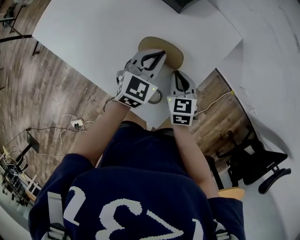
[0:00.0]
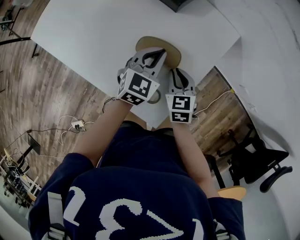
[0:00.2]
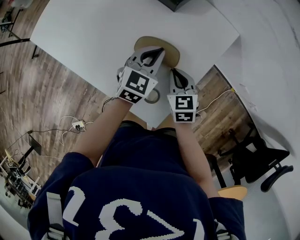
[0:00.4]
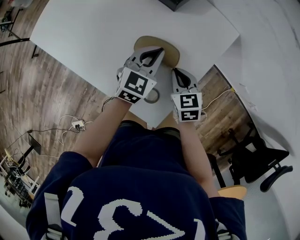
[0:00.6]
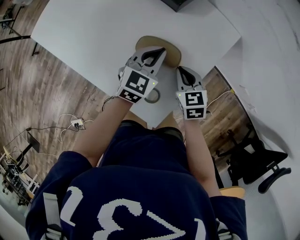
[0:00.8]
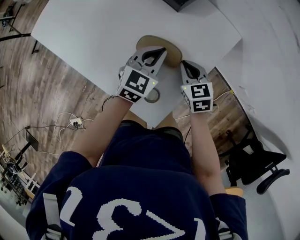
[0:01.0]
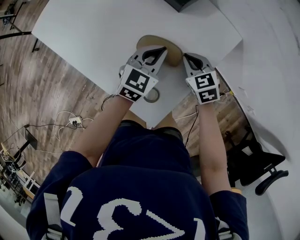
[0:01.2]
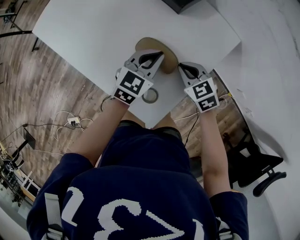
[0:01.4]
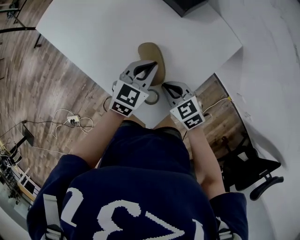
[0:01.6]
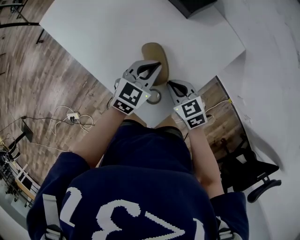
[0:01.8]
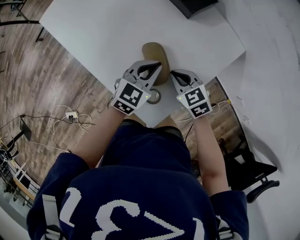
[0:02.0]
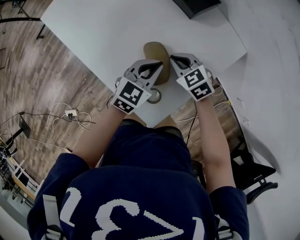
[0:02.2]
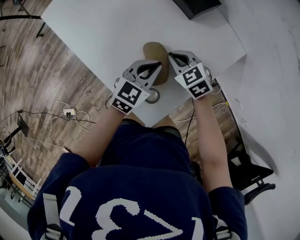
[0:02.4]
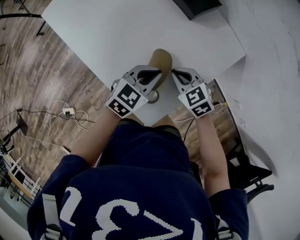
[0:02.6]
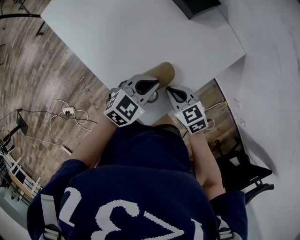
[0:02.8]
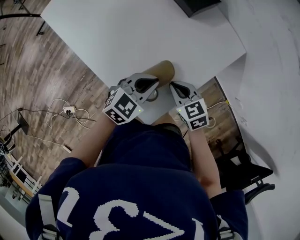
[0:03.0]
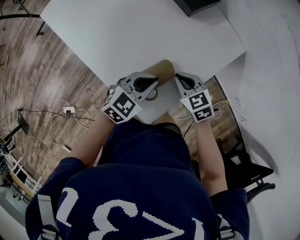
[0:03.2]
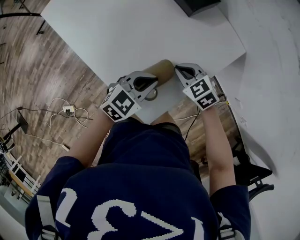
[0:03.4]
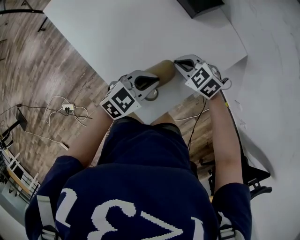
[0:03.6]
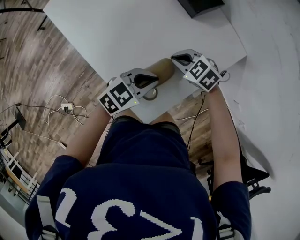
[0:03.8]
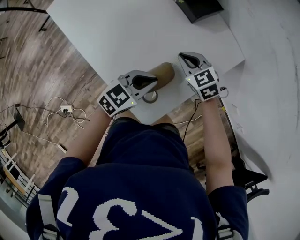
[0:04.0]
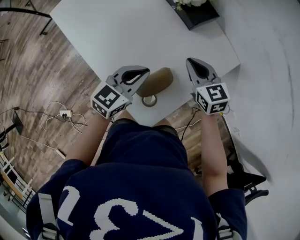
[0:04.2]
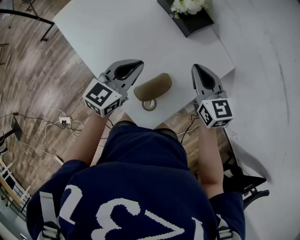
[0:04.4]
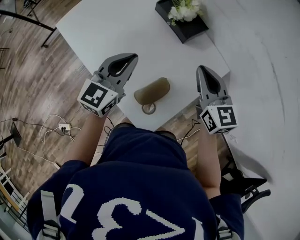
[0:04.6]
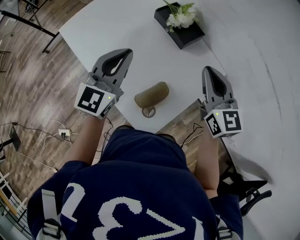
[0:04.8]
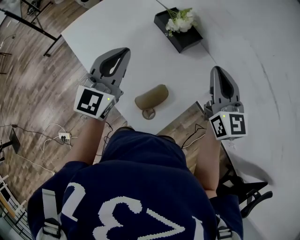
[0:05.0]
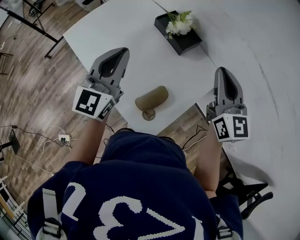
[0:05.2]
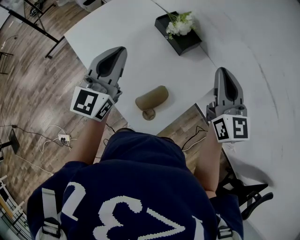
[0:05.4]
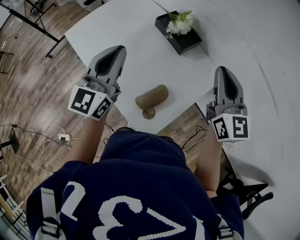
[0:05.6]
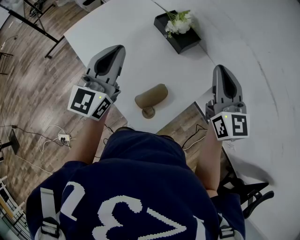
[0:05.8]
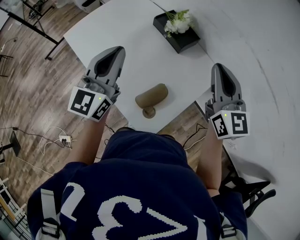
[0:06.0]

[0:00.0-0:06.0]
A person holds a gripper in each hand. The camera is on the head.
0:00.0 to 0:01.6: The right gripper heads backward, covering roughly 5 cm, and turns by about 40 degrees.
0:01.6 to 0:03.0: The left gripper travels backward by roughly 5 cm; the right gripper goes forward and returns, approximately 10 cm each way.
0:03.0 to 0:04.4: The right gripper travels upward by roughly 15 cm, and turns by approximately 30 degrees. Meanwhile the left gripper shifts by some 15 cm, and changes its angle by approximately 30 degrees.
0:04.4 to 0:06.0: The grippers both shift upward by roughly 20 cm. The right gripper changes its angle by approximately 20 degrees, while the left gripper swivels about 30 degrees.

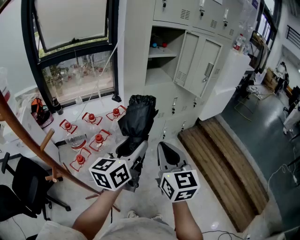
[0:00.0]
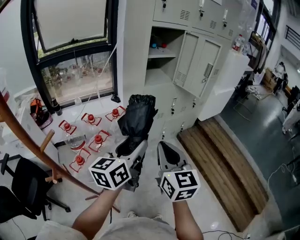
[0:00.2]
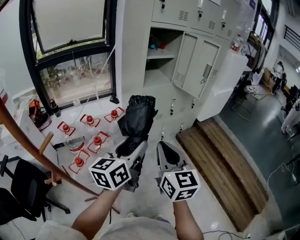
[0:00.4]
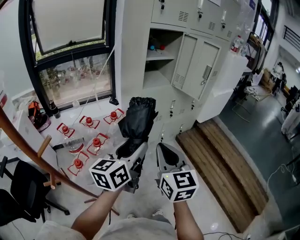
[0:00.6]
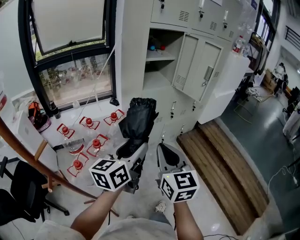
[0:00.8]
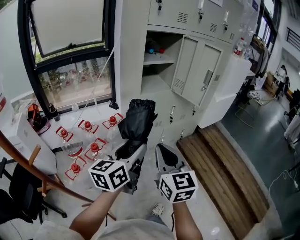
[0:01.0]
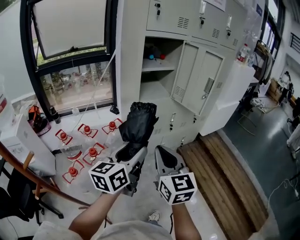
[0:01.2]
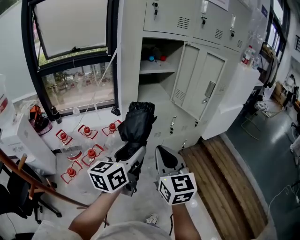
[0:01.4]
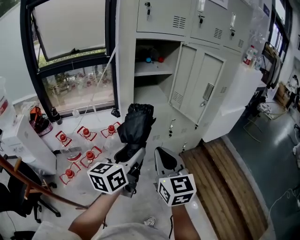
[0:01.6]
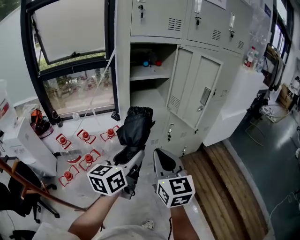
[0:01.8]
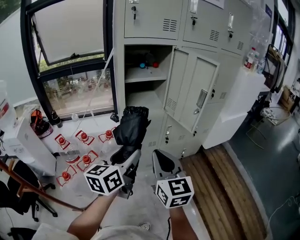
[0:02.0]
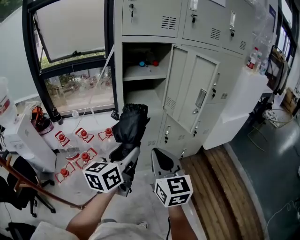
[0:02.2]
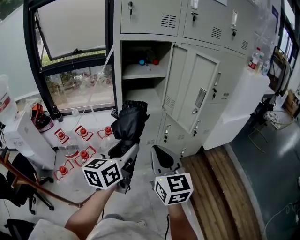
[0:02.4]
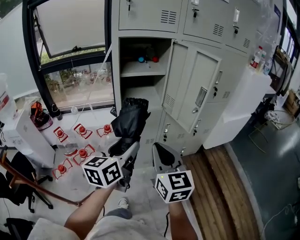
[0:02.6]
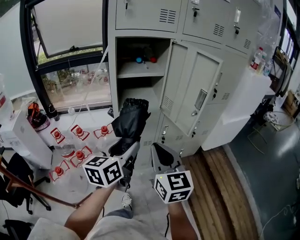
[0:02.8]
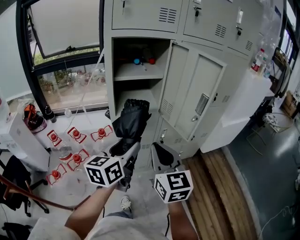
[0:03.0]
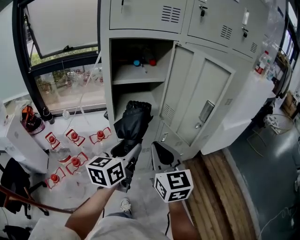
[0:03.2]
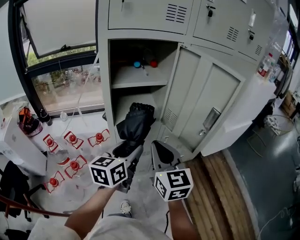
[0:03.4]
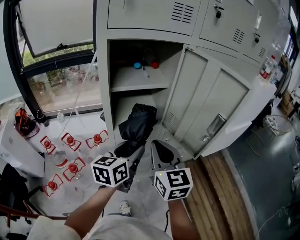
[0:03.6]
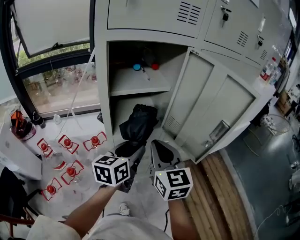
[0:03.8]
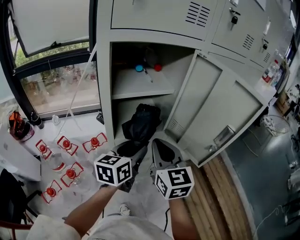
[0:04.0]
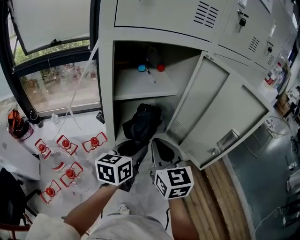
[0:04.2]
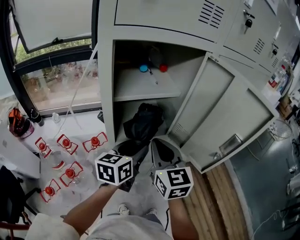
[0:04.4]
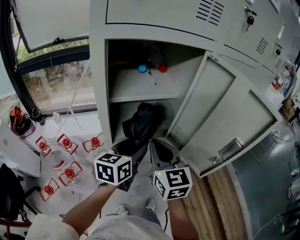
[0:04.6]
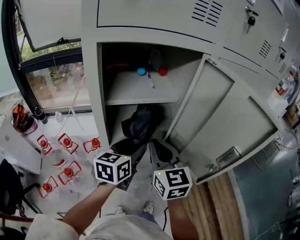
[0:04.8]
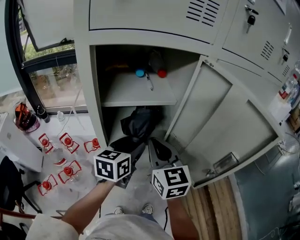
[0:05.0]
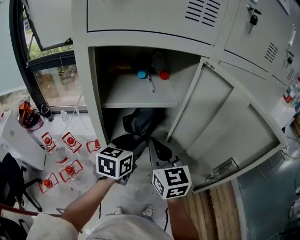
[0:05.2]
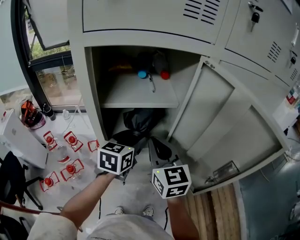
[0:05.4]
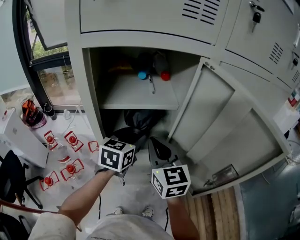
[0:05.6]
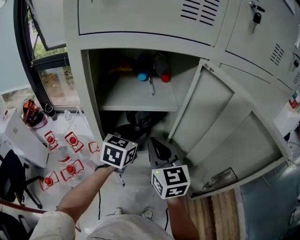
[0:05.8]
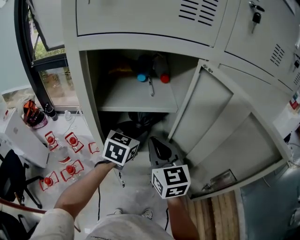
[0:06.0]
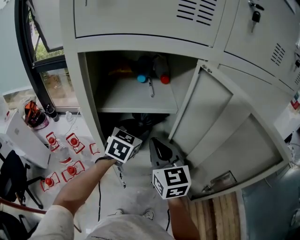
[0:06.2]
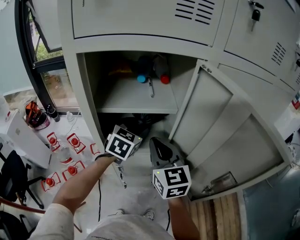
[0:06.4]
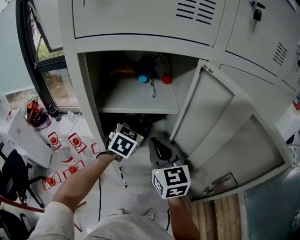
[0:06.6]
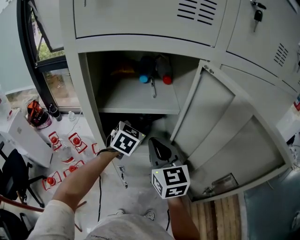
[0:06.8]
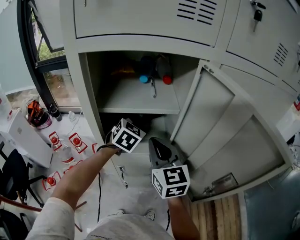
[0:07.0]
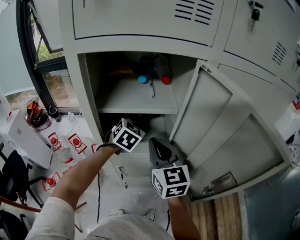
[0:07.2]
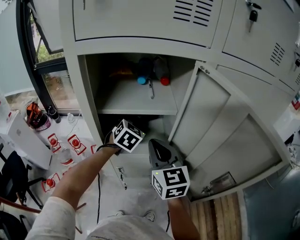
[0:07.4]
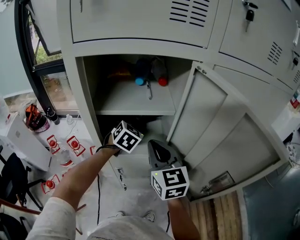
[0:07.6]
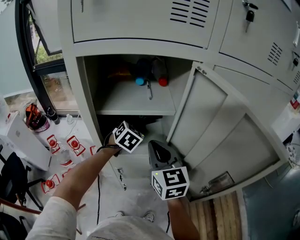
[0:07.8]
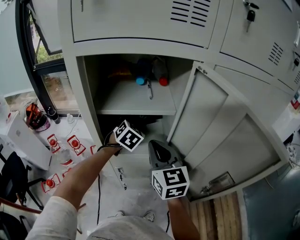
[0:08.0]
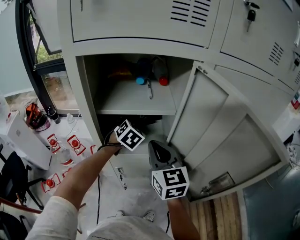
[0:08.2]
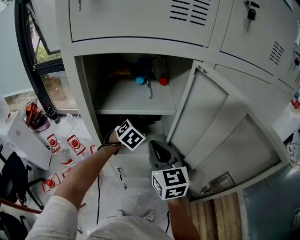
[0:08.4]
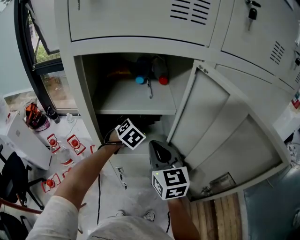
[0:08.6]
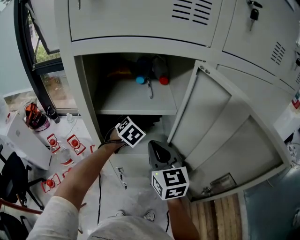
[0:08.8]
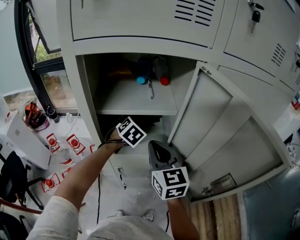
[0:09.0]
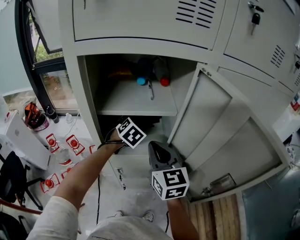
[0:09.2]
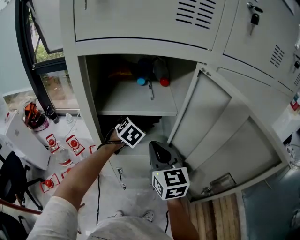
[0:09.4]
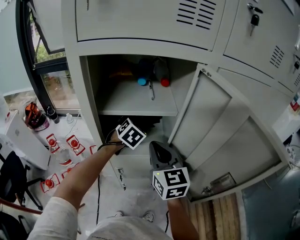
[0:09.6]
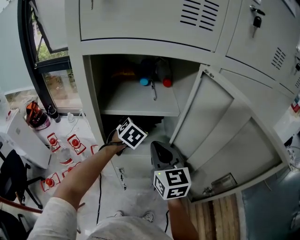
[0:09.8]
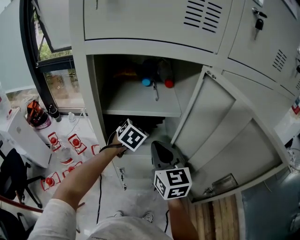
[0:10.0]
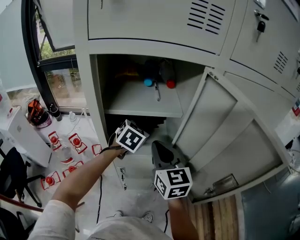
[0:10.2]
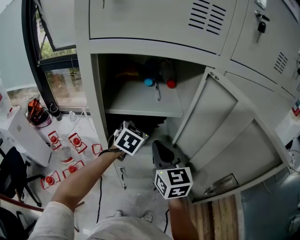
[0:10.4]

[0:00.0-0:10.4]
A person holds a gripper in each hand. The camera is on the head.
0:00.0 to 0:01.4: The grippers both shift forward and to the right by some 15 cm.
0:01.4 to 0:03.0: The grippers both shift forward and to the right by roughly 20 cm.
0:03.0 to 0:04.4: Both grippers travel together forward, approximately 20 cm.
0:04.4 to 0:06.0: The right gripper travels forward by some 10 cm; the left gripper moves forward, roughly 15 cm, and changes its angle by roughly 30 degrees.
0:06.0 to 0:07.4: The left gripper goes roughly 5 cm forward, and rotates approximately 20 degrees.
0:07.4 to 0:09.0: The grippers move only a little.
0:09.0 to 0:10.4: The left gripper shifts roughly 5 cm upward.

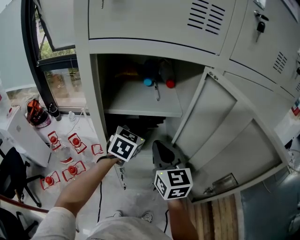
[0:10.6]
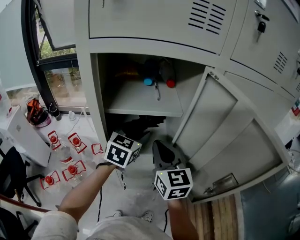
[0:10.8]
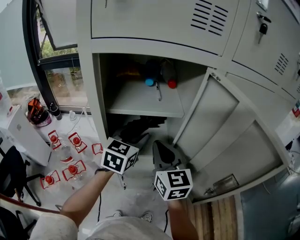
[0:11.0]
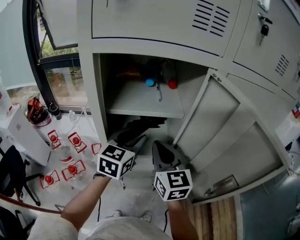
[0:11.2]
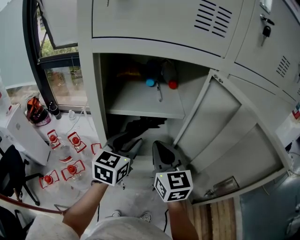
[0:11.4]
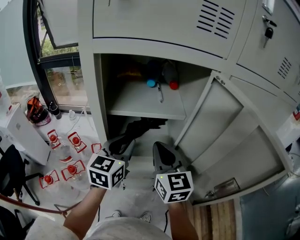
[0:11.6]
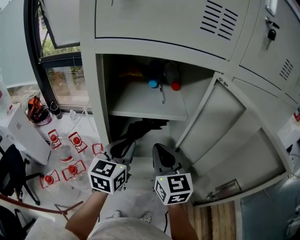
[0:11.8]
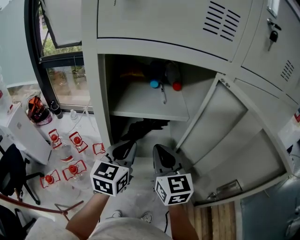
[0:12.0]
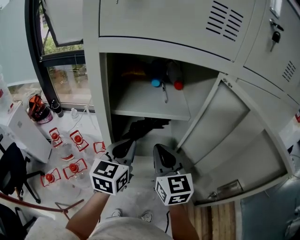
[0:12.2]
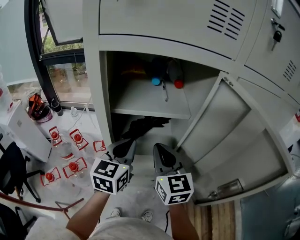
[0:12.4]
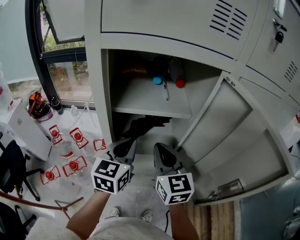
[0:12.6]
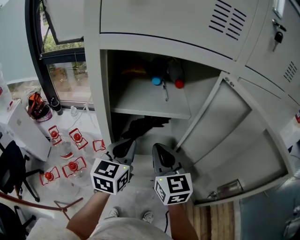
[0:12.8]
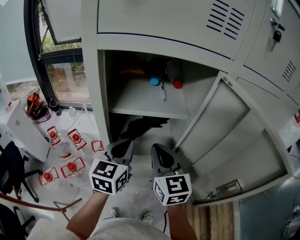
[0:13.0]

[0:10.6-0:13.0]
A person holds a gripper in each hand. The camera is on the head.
0:10.6 to 0:11.8: The left gripper goes roughly 10 cm backward and to the left, changes its angle by about 20 degrees, and closes.
0:11.8 to 0:13.0: The two grippers keep their place.

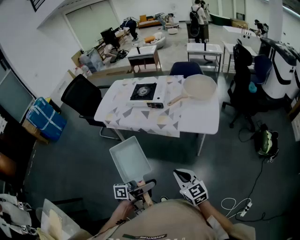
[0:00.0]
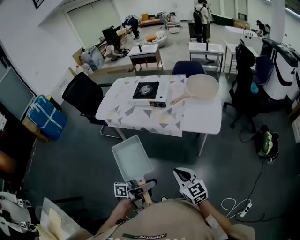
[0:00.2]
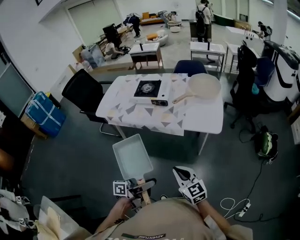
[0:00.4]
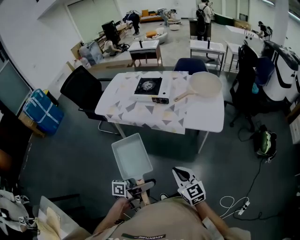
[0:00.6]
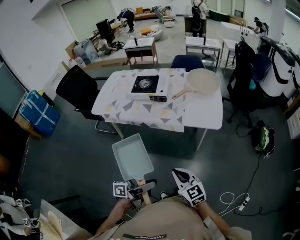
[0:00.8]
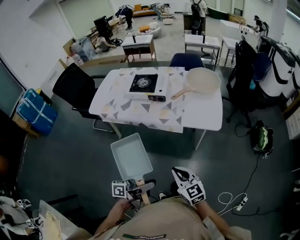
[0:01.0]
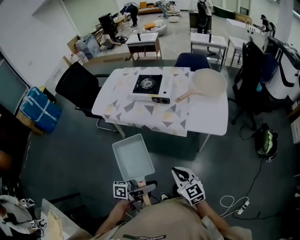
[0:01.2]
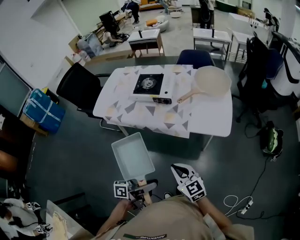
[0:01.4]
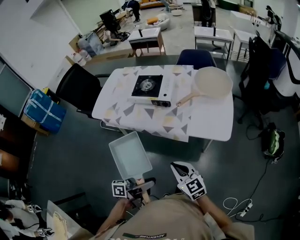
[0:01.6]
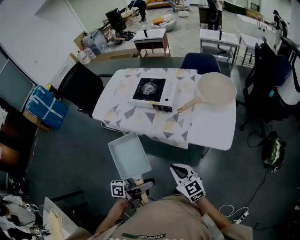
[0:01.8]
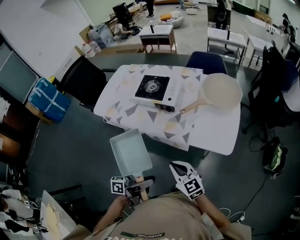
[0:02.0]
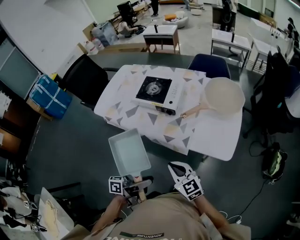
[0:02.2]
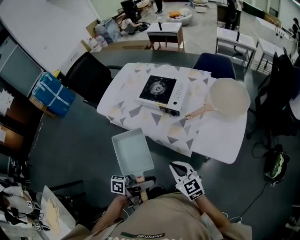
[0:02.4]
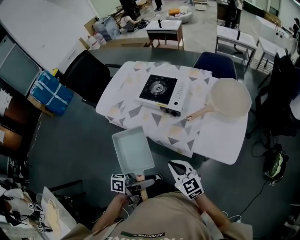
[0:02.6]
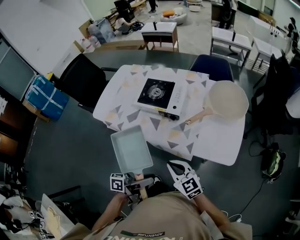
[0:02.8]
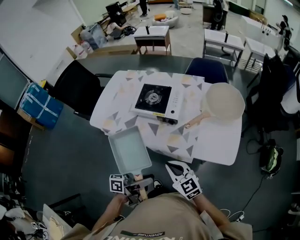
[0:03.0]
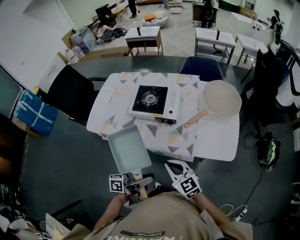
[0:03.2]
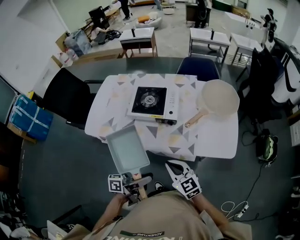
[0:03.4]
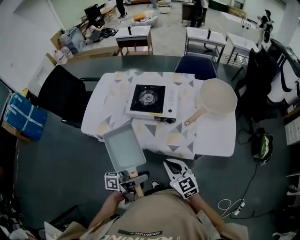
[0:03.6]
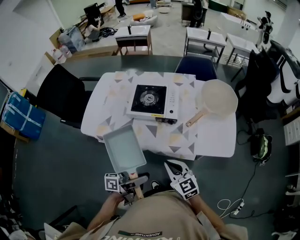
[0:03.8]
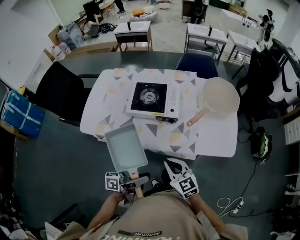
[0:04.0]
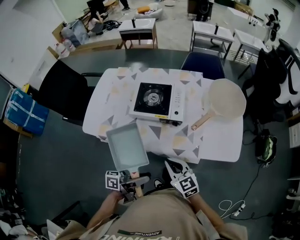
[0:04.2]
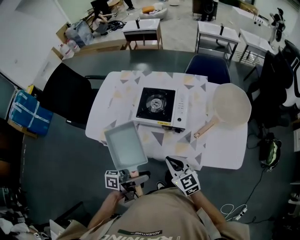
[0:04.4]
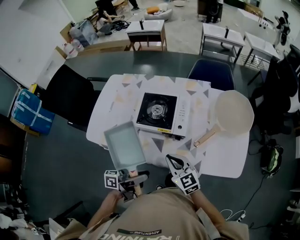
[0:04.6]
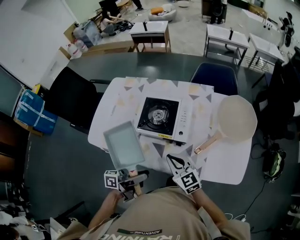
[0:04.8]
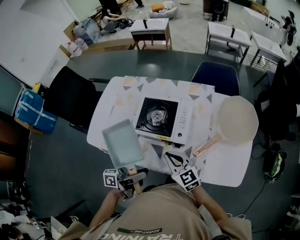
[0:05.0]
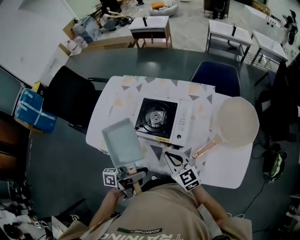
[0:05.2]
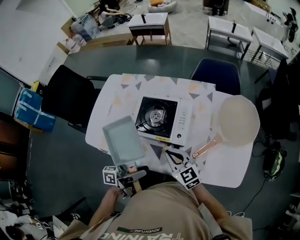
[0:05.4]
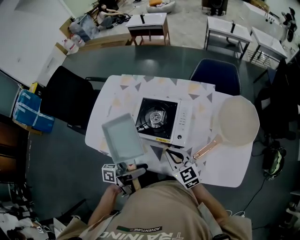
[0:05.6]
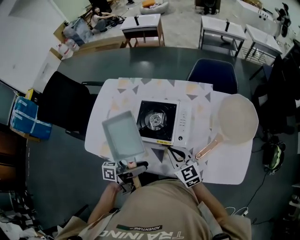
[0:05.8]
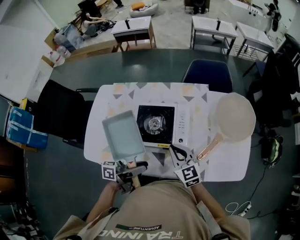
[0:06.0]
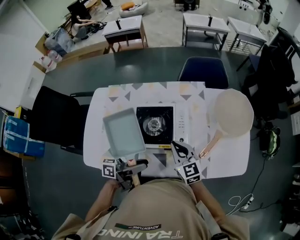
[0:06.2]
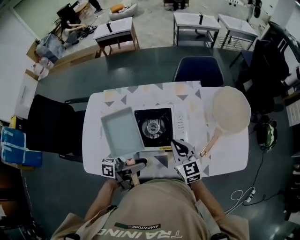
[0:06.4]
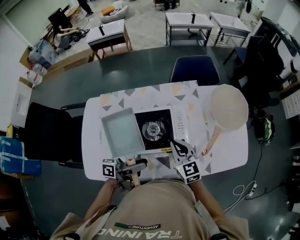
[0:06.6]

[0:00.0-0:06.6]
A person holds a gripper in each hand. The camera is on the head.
0:00.0 to 0:01.6: The right gripper changes place by some 15 cm.
0:01.6 to 0:03.2: The right gripper changes place by approximately 15 cm.
0:03.2 to 0:05.0: The right gripper moves approximately 20 cm.
0:05.0 to 0:06.6: The right gripper ends up approximately 10 cm from where it was, and swivels approximately 30 degrees.
